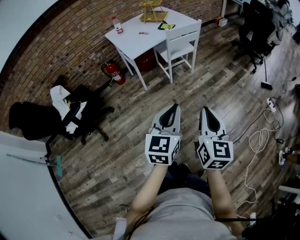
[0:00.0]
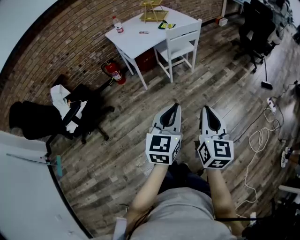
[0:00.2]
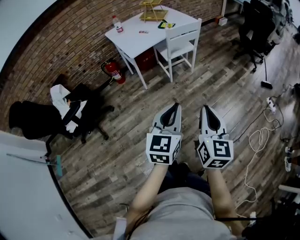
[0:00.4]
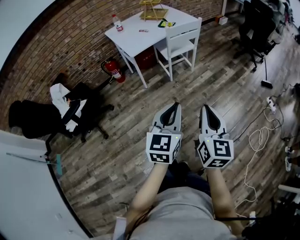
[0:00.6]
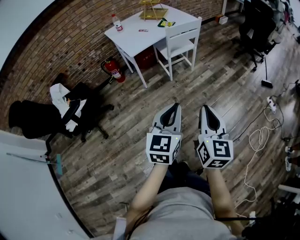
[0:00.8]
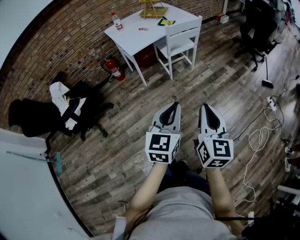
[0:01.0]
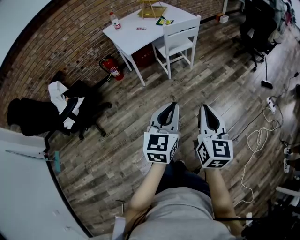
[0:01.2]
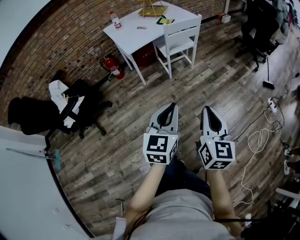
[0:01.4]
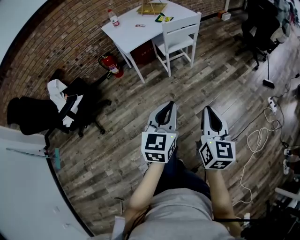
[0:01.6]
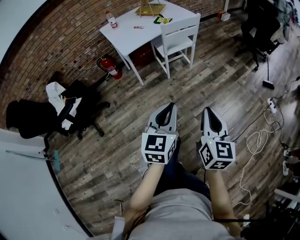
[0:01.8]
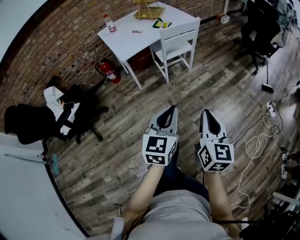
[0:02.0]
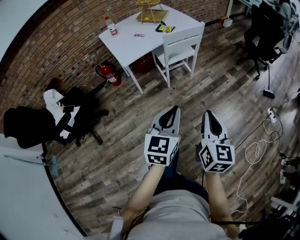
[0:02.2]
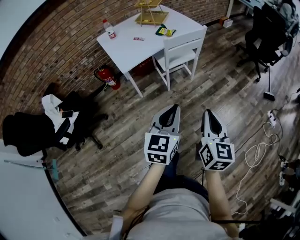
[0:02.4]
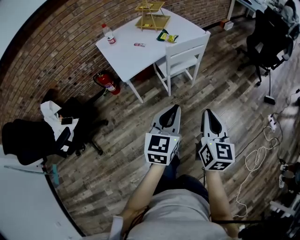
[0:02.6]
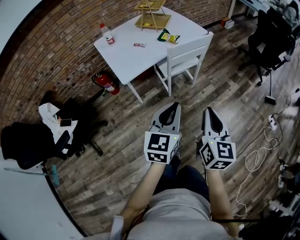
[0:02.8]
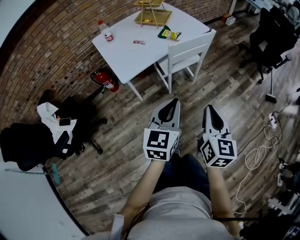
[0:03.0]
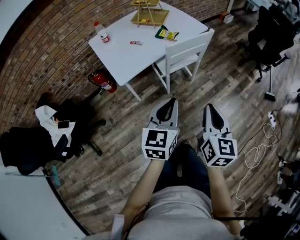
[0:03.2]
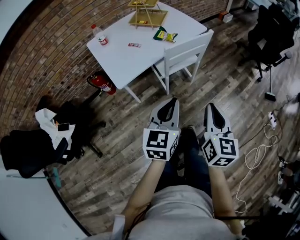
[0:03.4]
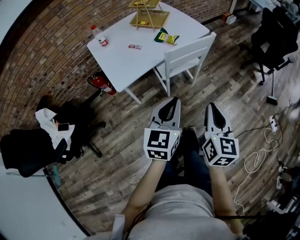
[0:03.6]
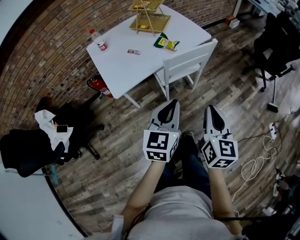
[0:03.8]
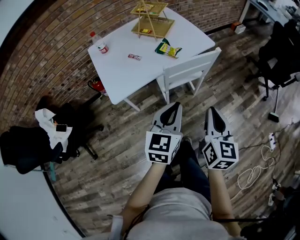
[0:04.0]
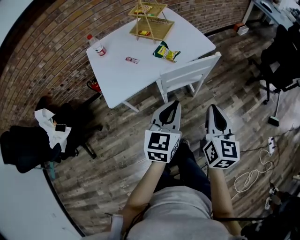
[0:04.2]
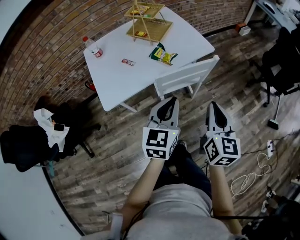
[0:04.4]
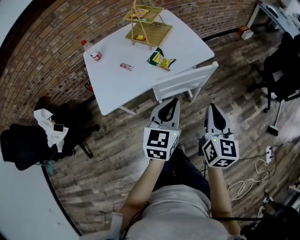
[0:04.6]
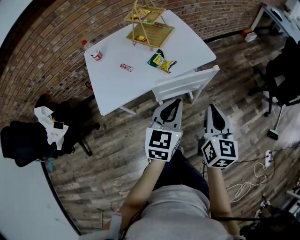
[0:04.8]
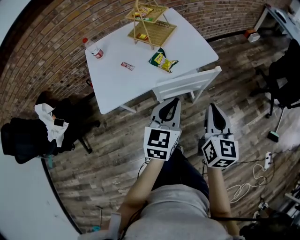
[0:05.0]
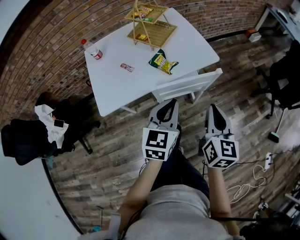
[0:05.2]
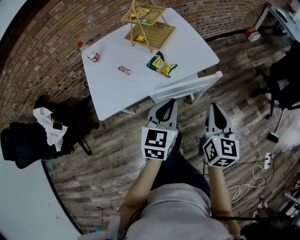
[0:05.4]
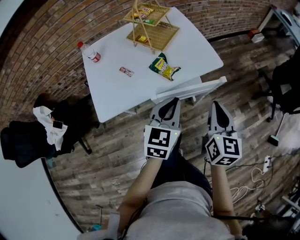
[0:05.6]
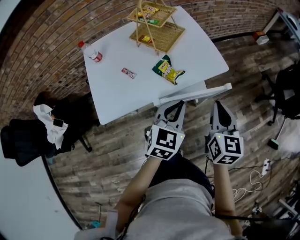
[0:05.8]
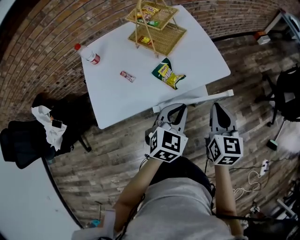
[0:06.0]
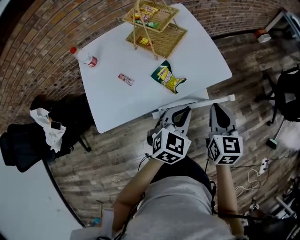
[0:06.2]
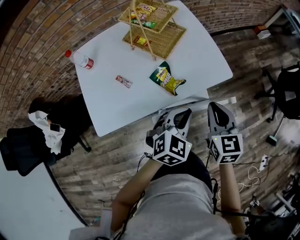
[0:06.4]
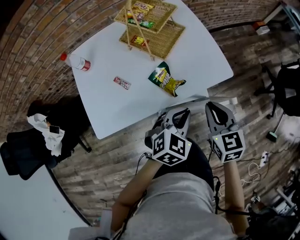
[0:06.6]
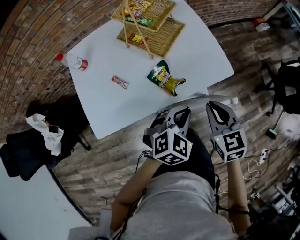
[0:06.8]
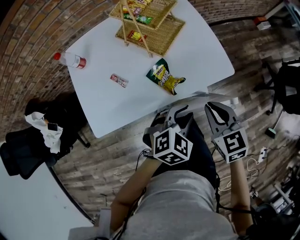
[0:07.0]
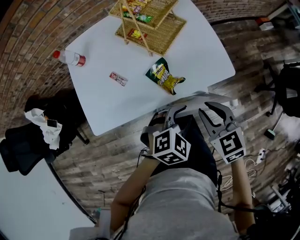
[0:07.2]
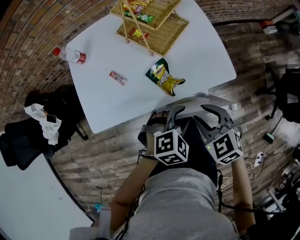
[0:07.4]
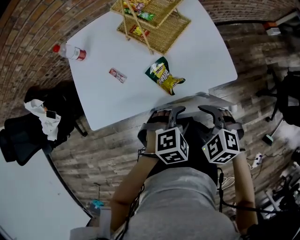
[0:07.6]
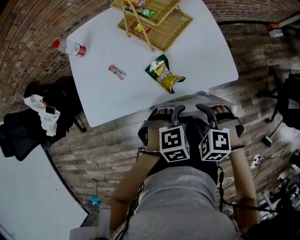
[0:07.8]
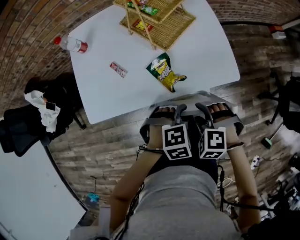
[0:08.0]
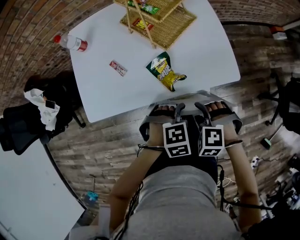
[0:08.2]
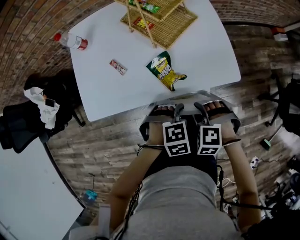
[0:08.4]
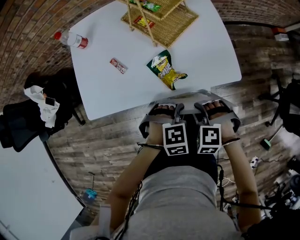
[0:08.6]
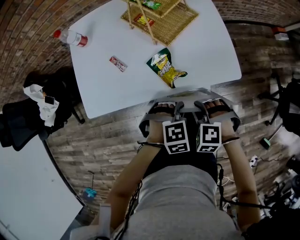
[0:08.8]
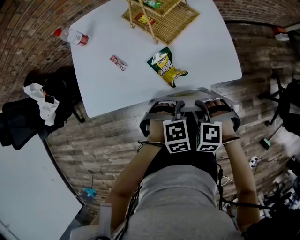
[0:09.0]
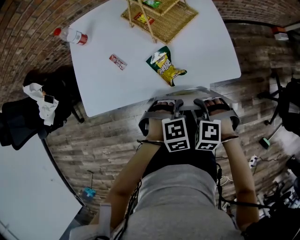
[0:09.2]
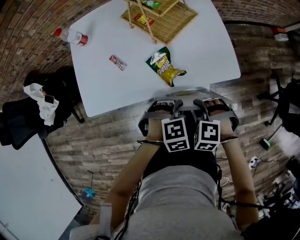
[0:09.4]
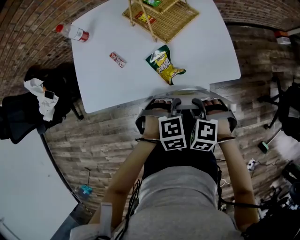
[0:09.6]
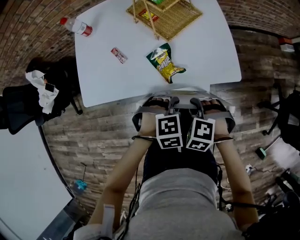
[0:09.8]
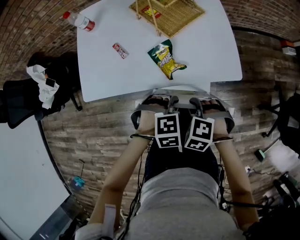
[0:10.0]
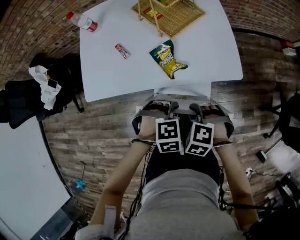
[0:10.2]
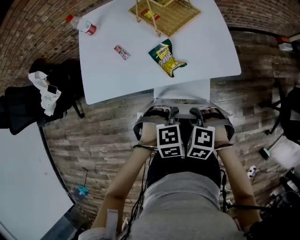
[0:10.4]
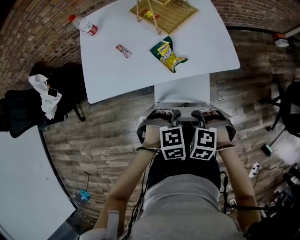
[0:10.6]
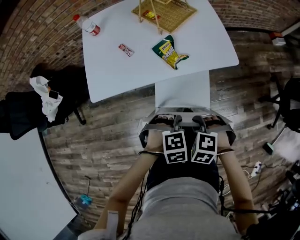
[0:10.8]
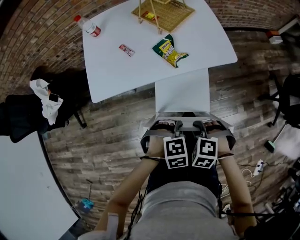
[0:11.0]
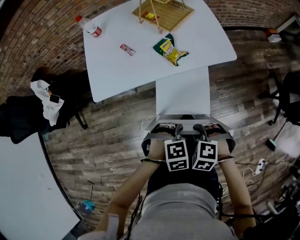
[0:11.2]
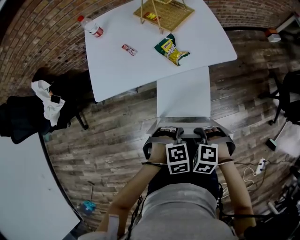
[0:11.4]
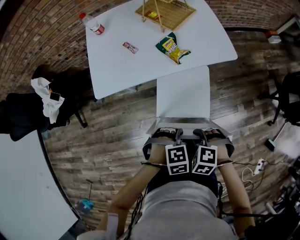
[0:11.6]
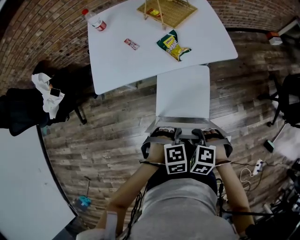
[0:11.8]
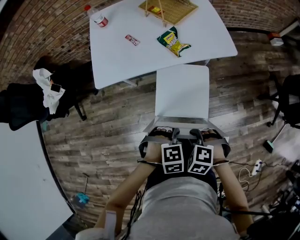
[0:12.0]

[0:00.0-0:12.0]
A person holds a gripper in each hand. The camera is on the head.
0:00.0 to 0:01.6: The right gripper shifts about 5 cm to the right.
0:01.6 to 0:03.0: The grippers both shift forward by some 30 cm.
0:03.0 to 0:04.4: Both grippers travel together forward, roughly 25 cm.
0:04.4 to 0:06.0: The two grippers go about 20 cm forward. The left gripper rotates about 20 degrees.
0:06.0 to 0:07.6: The left gripper goes roughly 10 cm downward, changes its angle by some 40 degrees, and opens, while the right gripper travels downward and to the left by about 10 cm, tips its fingers downward by about 30 degrees, and opens up.
0:07.6 to 0:09.0: The right gripper moves downward, approximately 5 cm, turns by some 30 degrees, and closes up. Meanwhile the left gripper closes its fingers.
0:09.0 to 0:10.4: The grippers both shift backward by some 5 cm.
0:10.4 to 0:12.0: The left gripper ends up about 20 cm from where it was. The right gripper shifts by roughly 20 cm.

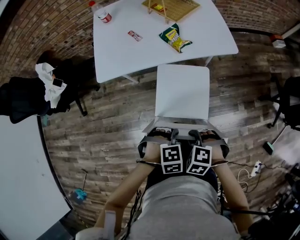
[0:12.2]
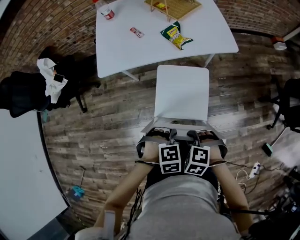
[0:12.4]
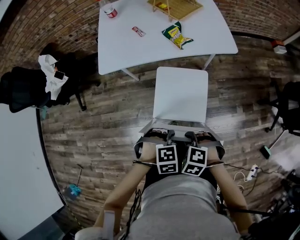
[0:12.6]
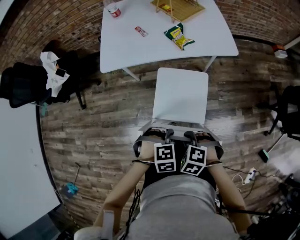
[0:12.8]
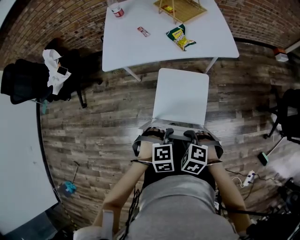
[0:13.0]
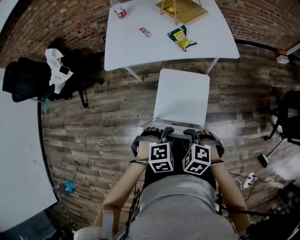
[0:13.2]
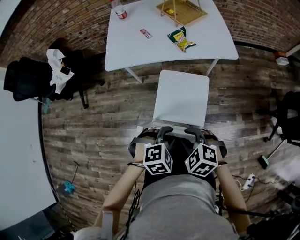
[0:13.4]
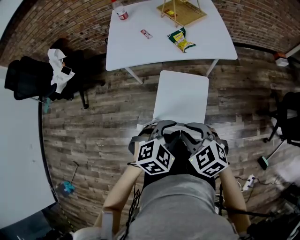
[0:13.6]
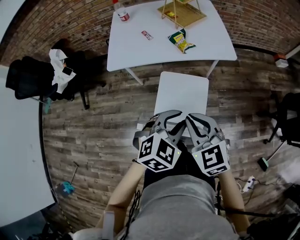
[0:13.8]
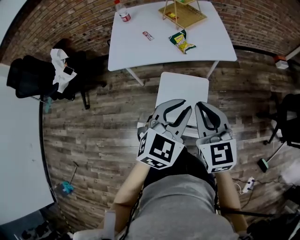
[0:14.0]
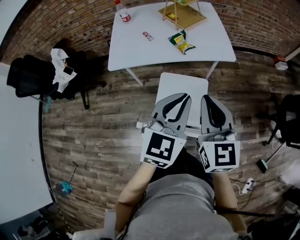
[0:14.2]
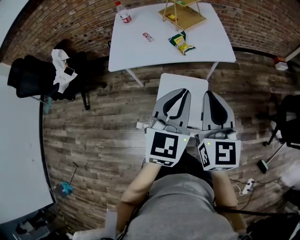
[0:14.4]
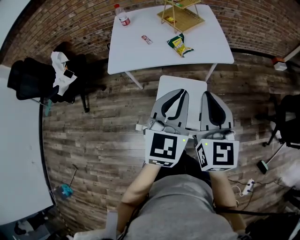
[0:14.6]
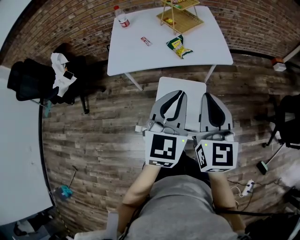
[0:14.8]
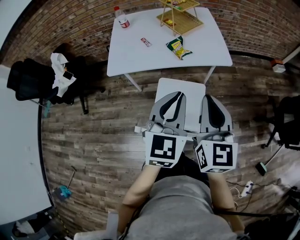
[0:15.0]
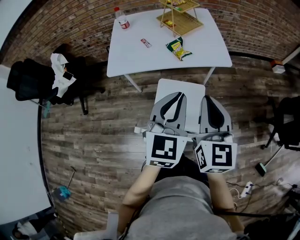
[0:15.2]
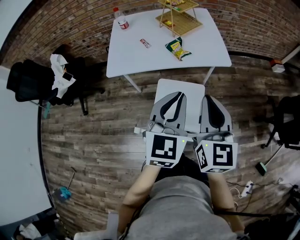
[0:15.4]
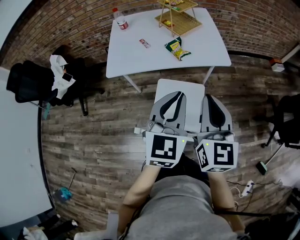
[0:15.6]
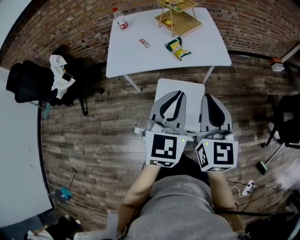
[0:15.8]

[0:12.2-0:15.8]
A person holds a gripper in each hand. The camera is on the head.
0:12.2 to 0:14.0: The two grippers go about 25 cm upward. The right gripper tips its fingers upward by approximately 60 degrees, while the left gripper tilts its fingers some 50 degrees upward.
0:14.0 to 0:15.8: The right gripper moves approximately 5 cm. The left gripper shifts by some 5 cm, and rotates some 20 degrees.

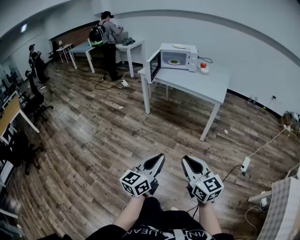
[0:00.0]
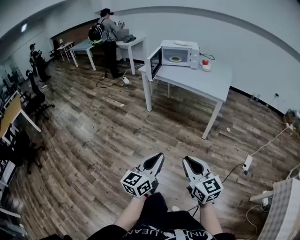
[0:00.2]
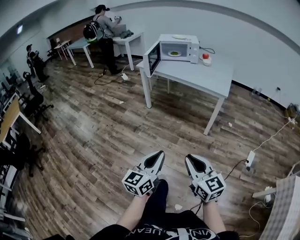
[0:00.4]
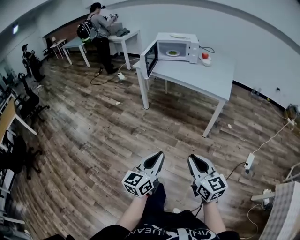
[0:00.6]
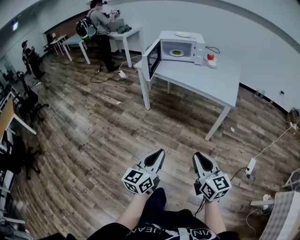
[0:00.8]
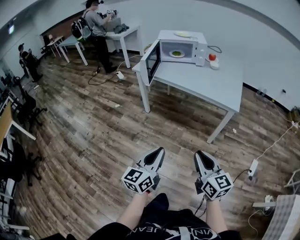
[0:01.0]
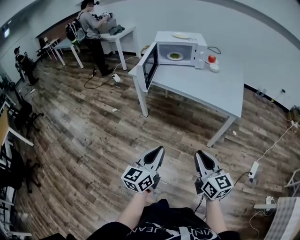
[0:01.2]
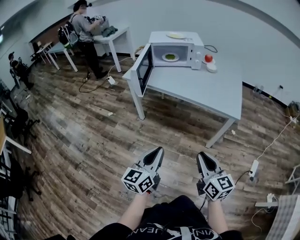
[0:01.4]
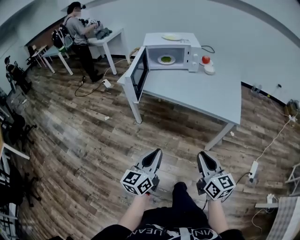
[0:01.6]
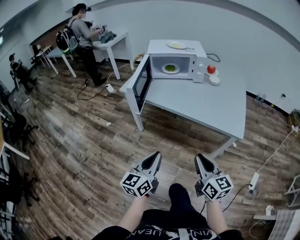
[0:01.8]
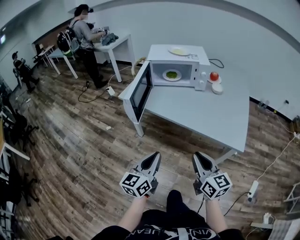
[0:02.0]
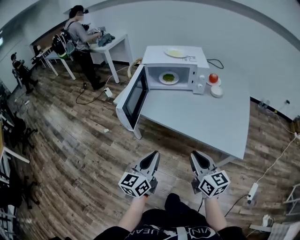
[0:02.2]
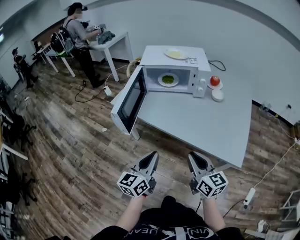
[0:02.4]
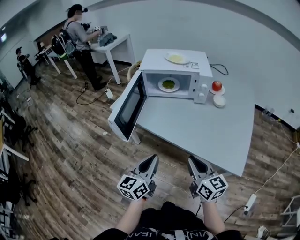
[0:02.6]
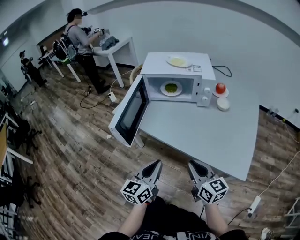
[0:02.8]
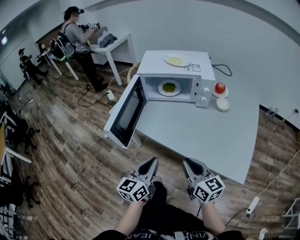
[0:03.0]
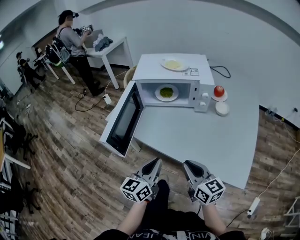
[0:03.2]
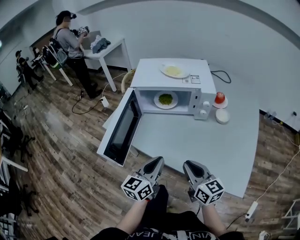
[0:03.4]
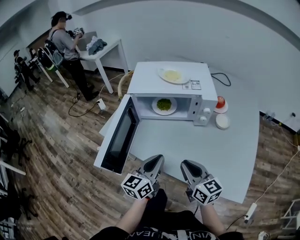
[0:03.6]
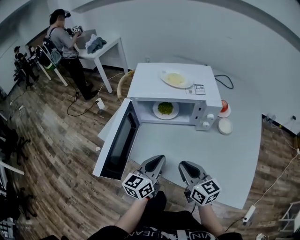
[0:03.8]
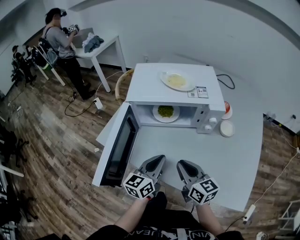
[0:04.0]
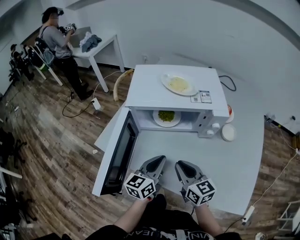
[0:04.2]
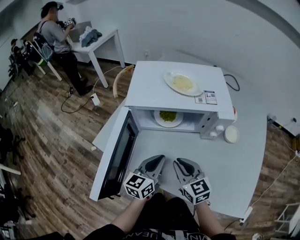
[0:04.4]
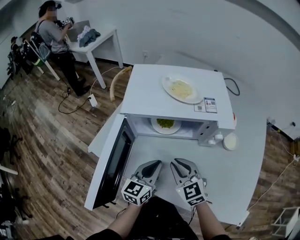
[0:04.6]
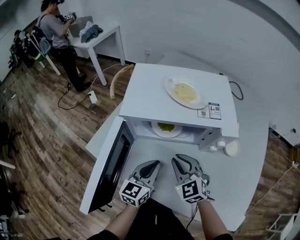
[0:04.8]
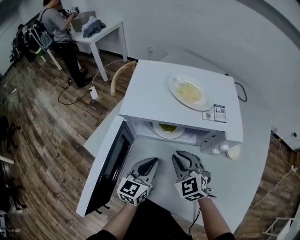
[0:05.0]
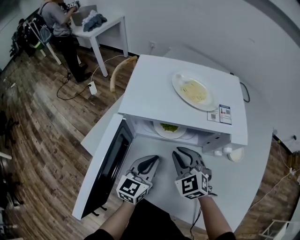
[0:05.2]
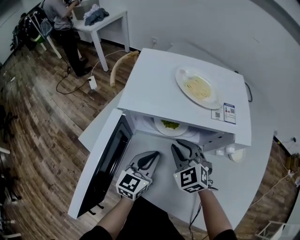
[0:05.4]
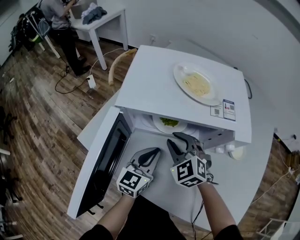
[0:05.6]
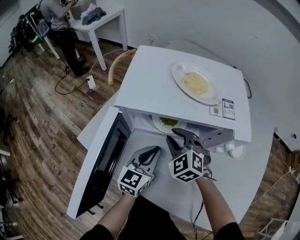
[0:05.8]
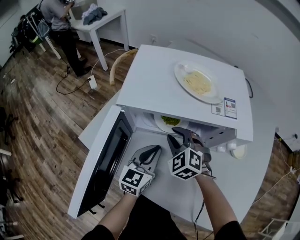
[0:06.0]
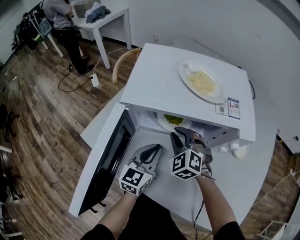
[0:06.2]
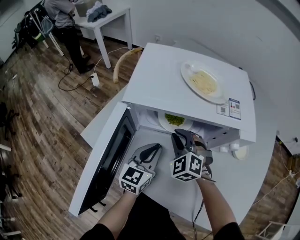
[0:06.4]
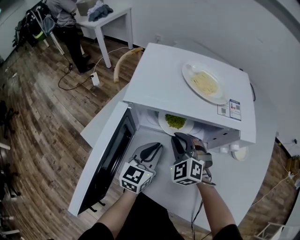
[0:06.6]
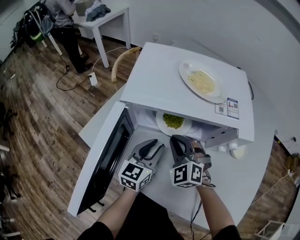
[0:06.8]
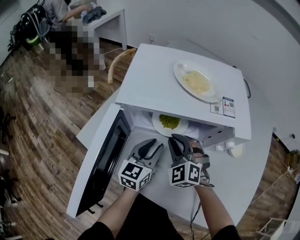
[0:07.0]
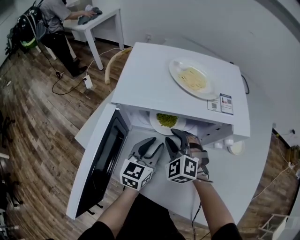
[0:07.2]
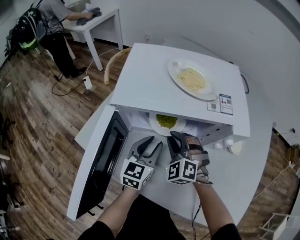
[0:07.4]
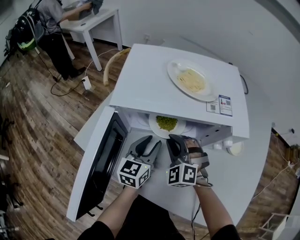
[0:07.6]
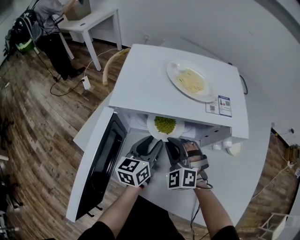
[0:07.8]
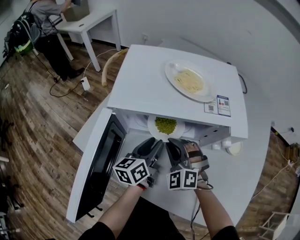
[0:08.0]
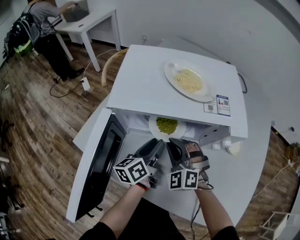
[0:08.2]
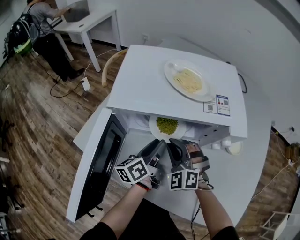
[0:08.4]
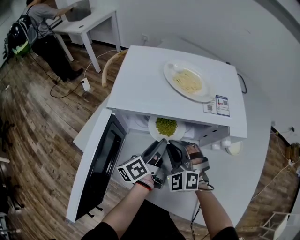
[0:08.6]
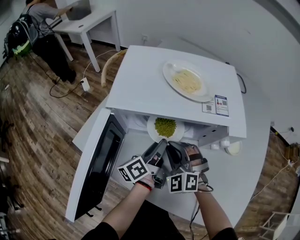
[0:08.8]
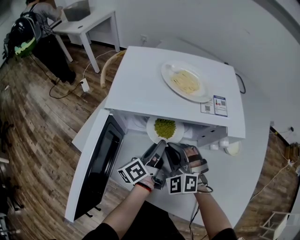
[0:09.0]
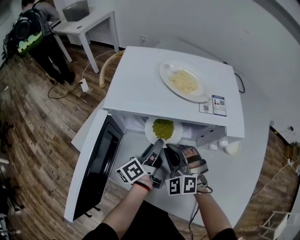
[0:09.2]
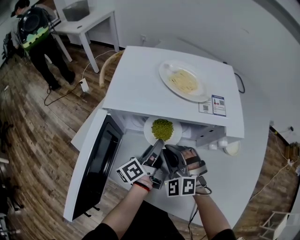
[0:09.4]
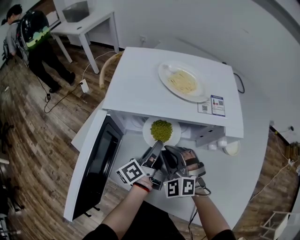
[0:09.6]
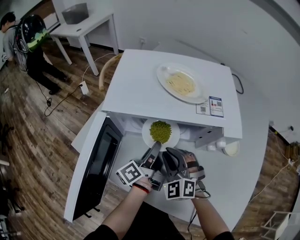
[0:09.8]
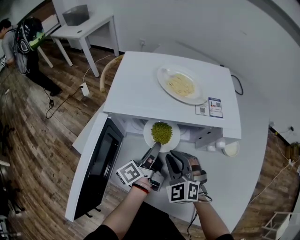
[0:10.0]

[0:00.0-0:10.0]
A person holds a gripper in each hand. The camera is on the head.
0:00.0 to 0:01.4: The two grippers go about 40 cm forward.
0:01.4 to 0:02.8: Both grippers move forward, roughly 35 cm.
0:02.8 to 0:04.2: The grippers both shift forward by some 25 cm.
0:04.2 to 0:05.8: The right gripper is displaced forward by about 20 cm, and rotates around the line of its fingers by roughly 50 degrees, counterclockwise from behind, while the left gripper heads forward and downward, covering about 10 cm.
0:05.8 to 0:07.2: The left gripper opens its fingers.
0:07.2 to 0:08.6: The left gripper rotates around the line of its fingers by some 60 degrees, counterclockwise from behind.
0:08.6 to 0:10.0: The grippers make only small movements.
